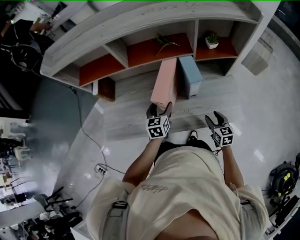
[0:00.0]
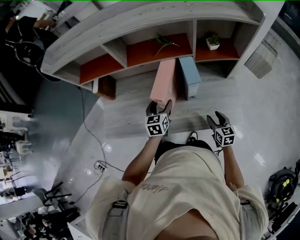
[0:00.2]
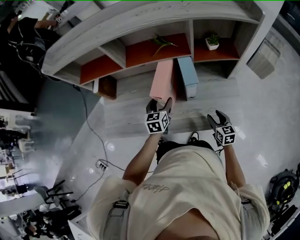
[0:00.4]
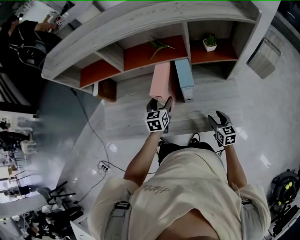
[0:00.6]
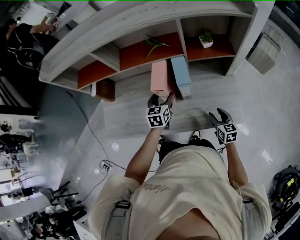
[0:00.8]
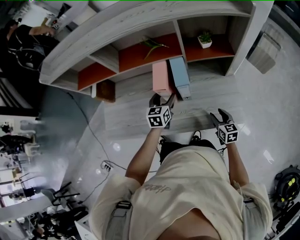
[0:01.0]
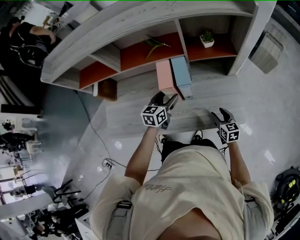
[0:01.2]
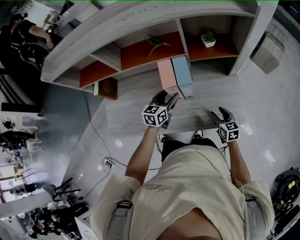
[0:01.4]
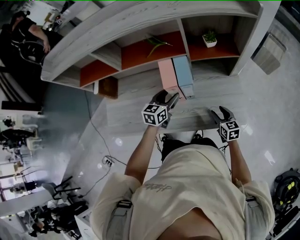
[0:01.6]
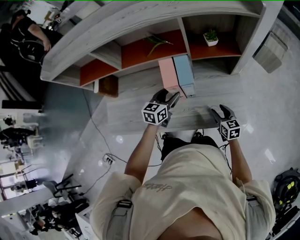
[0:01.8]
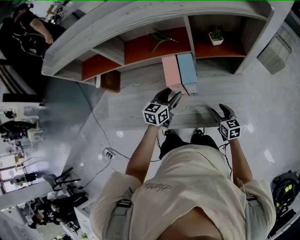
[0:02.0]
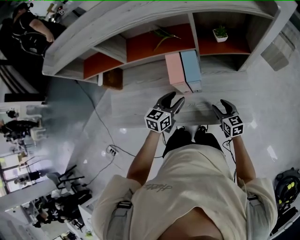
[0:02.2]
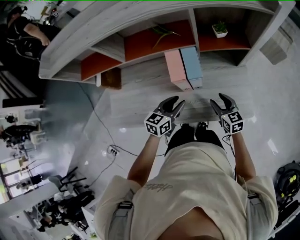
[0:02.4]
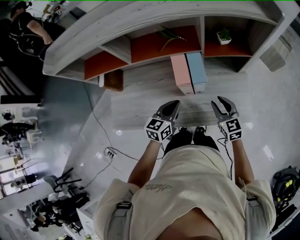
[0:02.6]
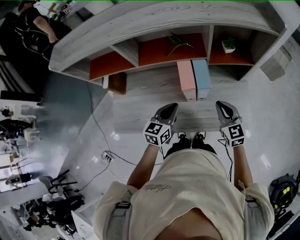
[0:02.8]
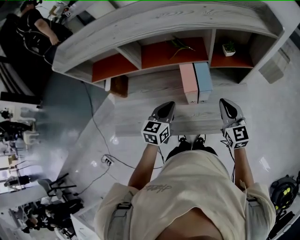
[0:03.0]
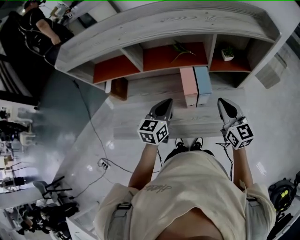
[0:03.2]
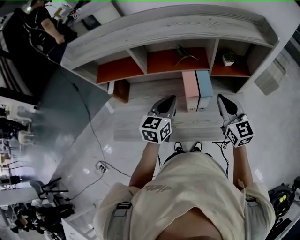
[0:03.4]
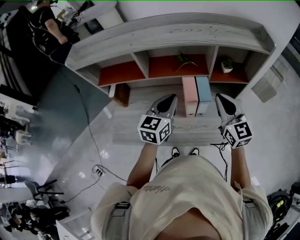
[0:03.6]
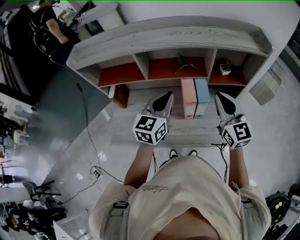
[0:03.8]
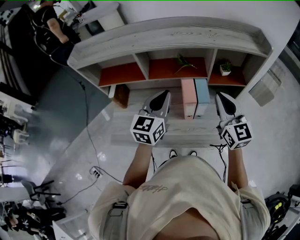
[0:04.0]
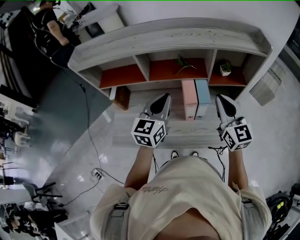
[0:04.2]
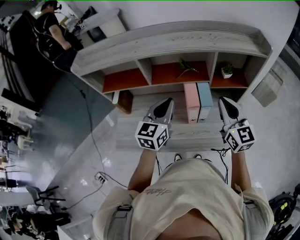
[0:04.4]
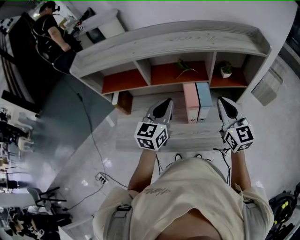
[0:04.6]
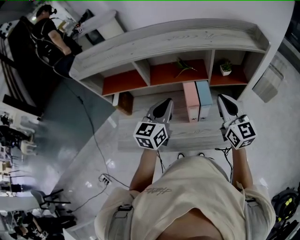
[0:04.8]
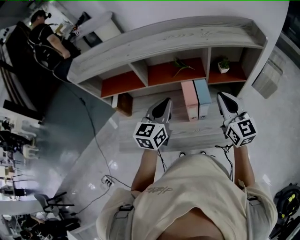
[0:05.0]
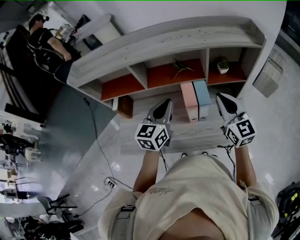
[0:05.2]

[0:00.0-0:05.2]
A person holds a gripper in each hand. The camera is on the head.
0:00.0 to 0:01.8: The left gripper moves to the right, about 10 cm; the right gripper changes place by about 5 cm.
0:01.8 to 0:03.4: The left gripper goes about 15 cm upward, and closes its fingers; the right gripper is displaced upward by about 30 cm, rotates roughly 30 degrees, and closes.
0:03.4 to 0:05.2: Both grippers move upward, approximately 5 cm.

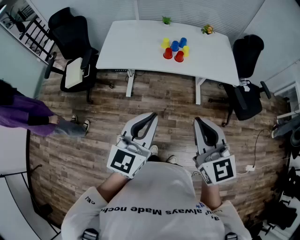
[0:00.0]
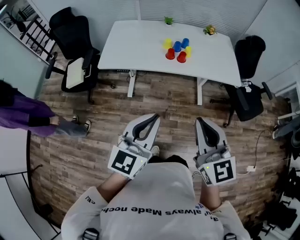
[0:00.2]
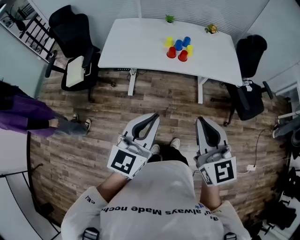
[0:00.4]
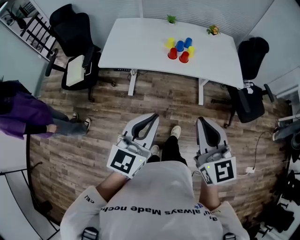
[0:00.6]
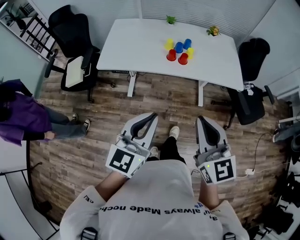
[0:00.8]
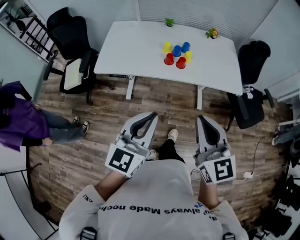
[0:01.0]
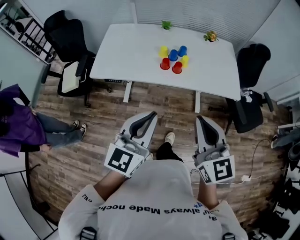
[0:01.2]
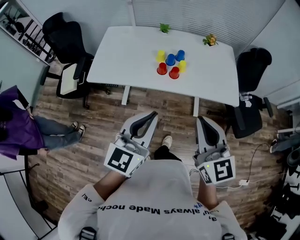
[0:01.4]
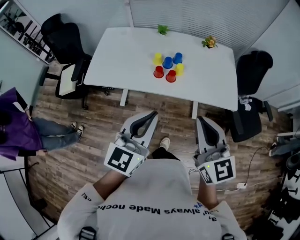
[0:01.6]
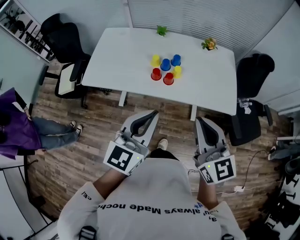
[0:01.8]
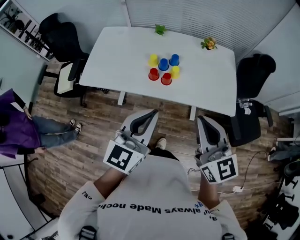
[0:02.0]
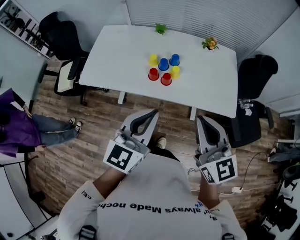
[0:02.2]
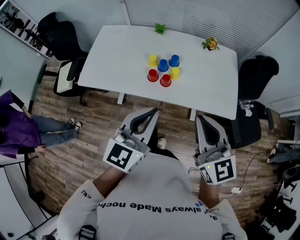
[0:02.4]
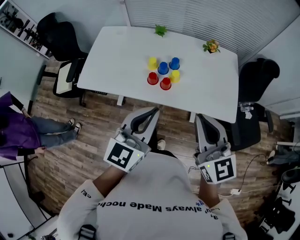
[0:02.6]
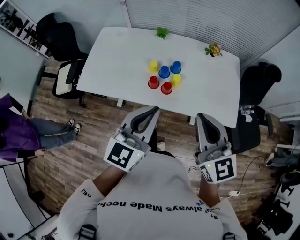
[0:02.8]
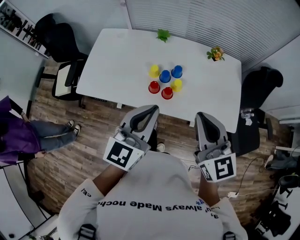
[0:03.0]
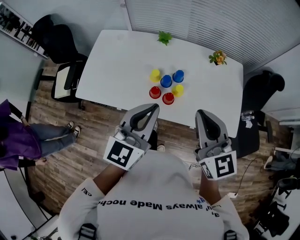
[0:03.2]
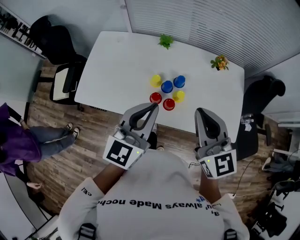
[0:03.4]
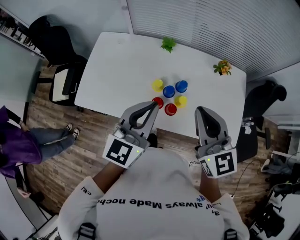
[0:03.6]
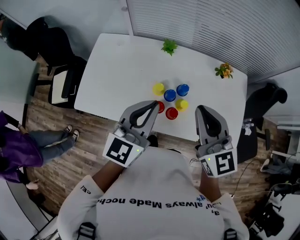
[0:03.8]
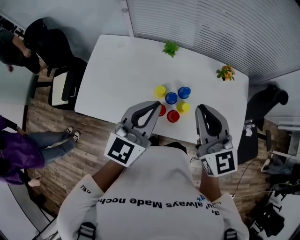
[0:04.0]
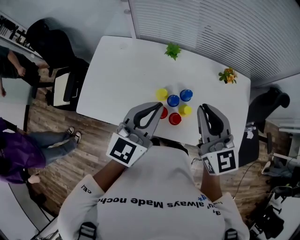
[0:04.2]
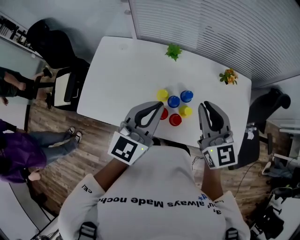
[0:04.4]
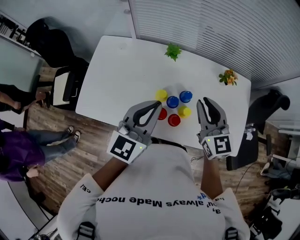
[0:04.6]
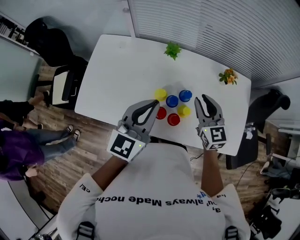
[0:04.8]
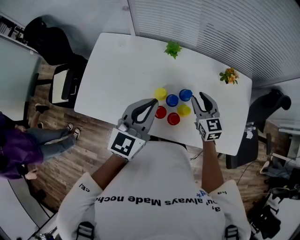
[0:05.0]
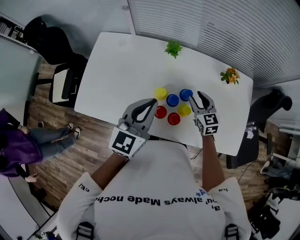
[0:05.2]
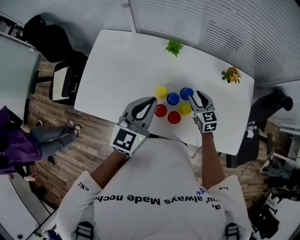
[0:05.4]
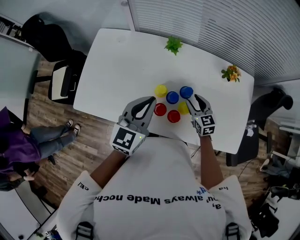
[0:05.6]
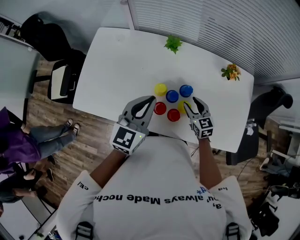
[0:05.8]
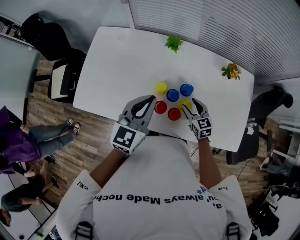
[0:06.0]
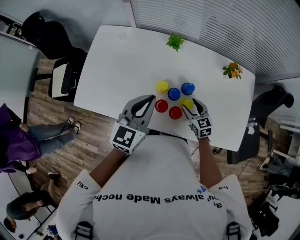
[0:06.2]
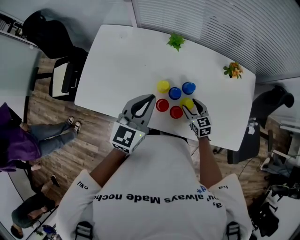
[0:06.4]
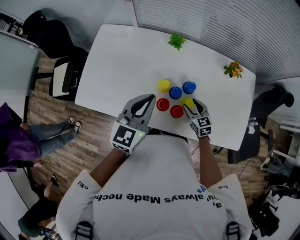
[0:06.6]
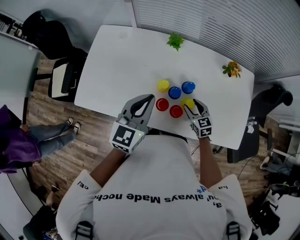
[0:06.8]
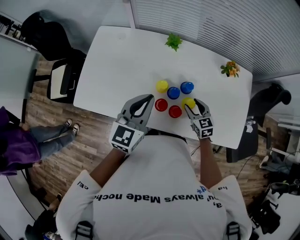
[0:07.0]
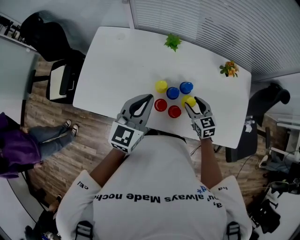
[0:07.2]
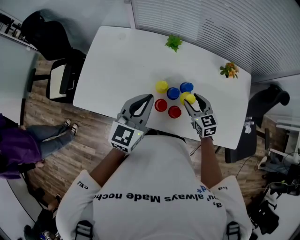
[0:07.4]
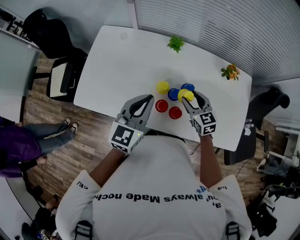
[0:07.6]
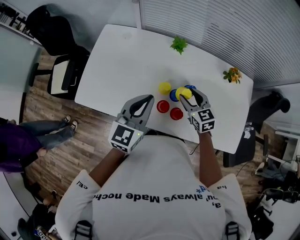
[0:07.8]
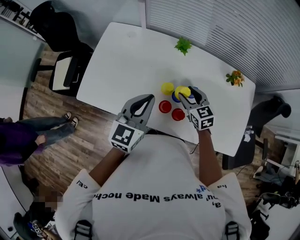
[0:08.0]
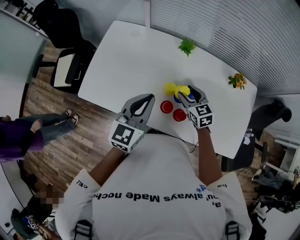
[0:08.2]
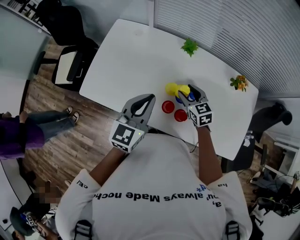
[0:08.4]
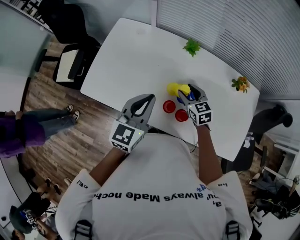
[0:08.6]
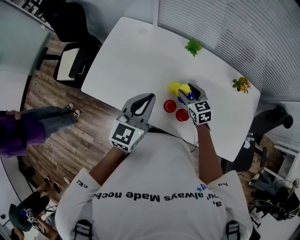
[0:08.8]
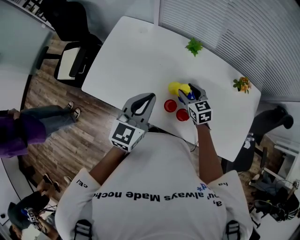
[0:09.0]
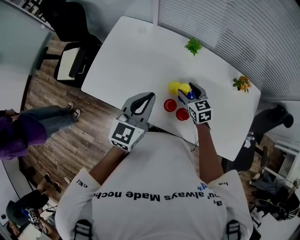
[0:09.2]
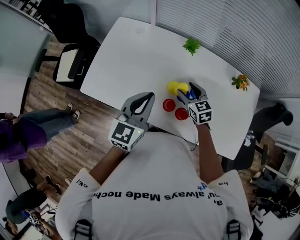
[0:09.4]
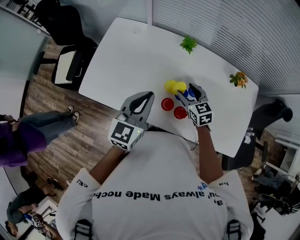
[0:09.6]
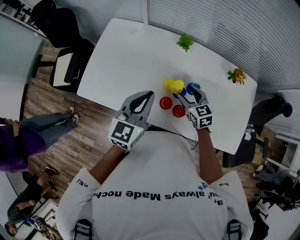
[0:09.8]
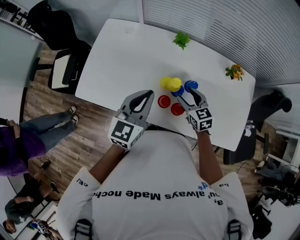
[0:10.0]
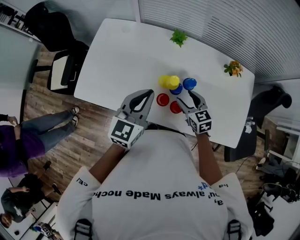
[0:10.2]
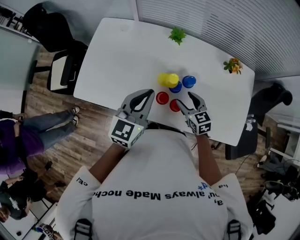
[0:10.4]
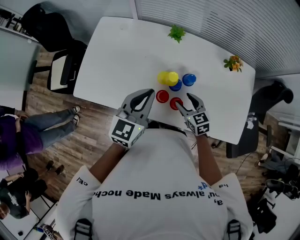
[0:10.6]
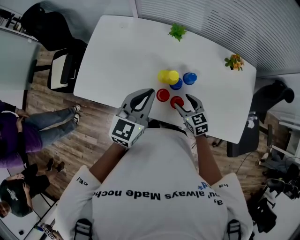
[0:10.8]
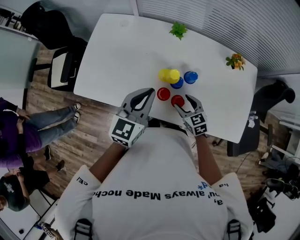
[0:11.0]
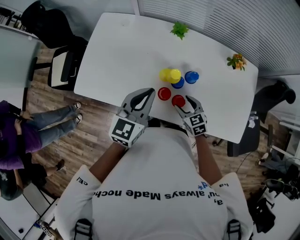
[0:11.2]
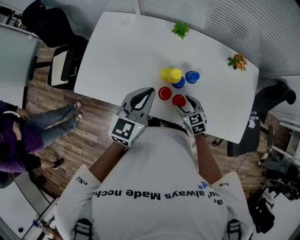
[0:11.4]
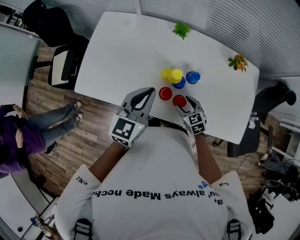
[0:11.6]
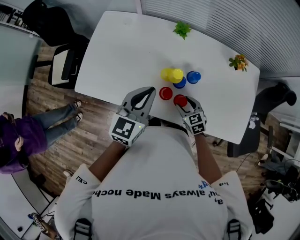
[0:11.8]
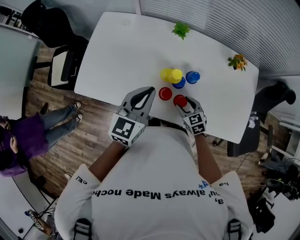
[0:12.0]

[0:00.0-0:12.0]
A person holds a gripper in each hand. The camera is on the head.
0:00.0 to 0:01.6: Both grippers travel together forward and to the right, about 20 cm.
0:01.6 to 0:03.0: Both grippers travel together forward, about 15 cm.
0:03.0 to 0:04.4: Both grippers travel together forward, some 20 cm.
0:04.4 to 0:06.0: The right gripper shifts some 30 cm downward, changes its angle by about 30 degrees, and opens up. Meanwhile the left gripper is displaced downward by about 10 cm.
0:06.0 to 0:07.6: The right gripper travels upward by roughly 10 cm.
0:07.6 to 0:09.0: The right gripper travels to the left by roughly 5 cm.
0:09.0 to 0:10.4: The right gripper travels backward by about 10 cm.
0:10.4 to 0:12.0: The right gripper goes approximately 5 cm downward.

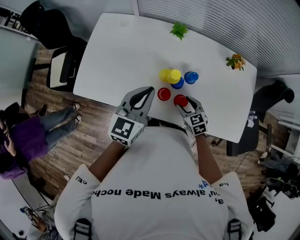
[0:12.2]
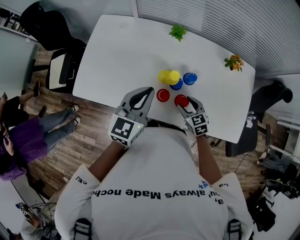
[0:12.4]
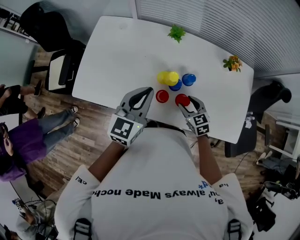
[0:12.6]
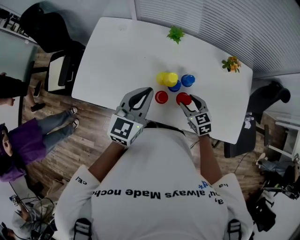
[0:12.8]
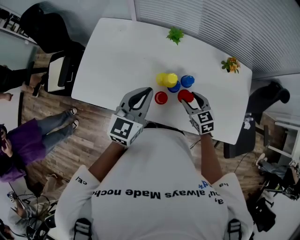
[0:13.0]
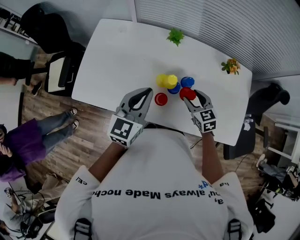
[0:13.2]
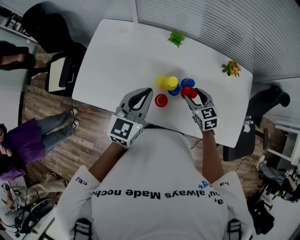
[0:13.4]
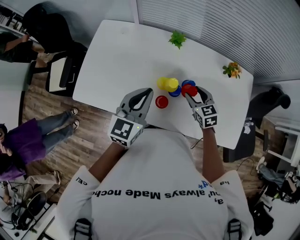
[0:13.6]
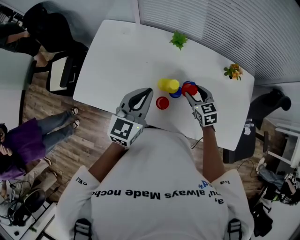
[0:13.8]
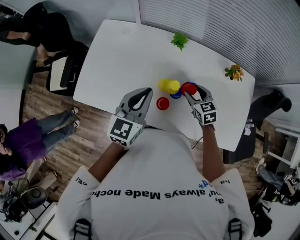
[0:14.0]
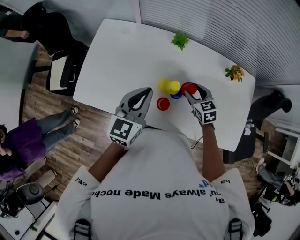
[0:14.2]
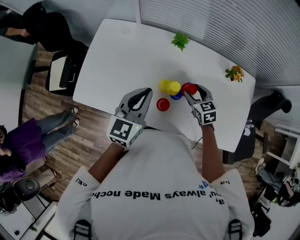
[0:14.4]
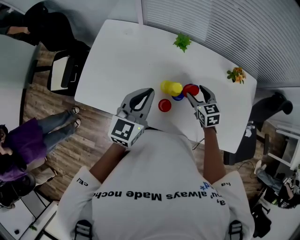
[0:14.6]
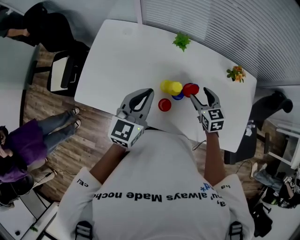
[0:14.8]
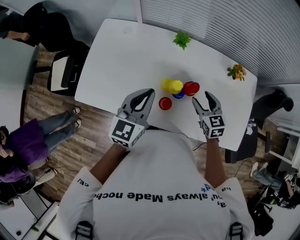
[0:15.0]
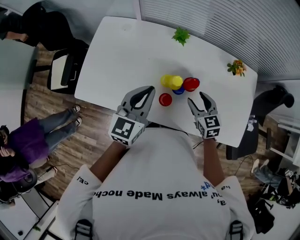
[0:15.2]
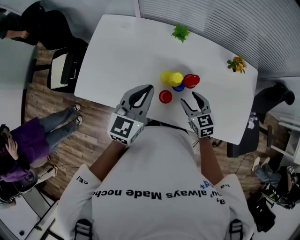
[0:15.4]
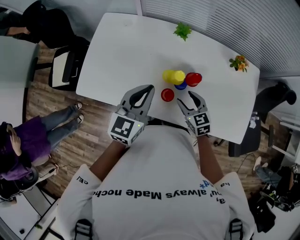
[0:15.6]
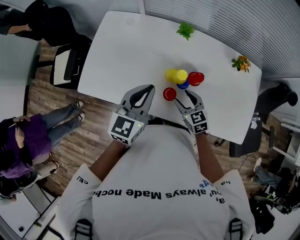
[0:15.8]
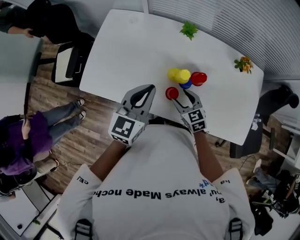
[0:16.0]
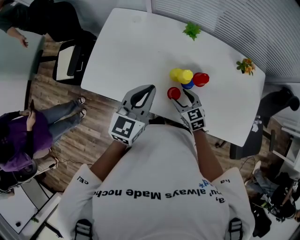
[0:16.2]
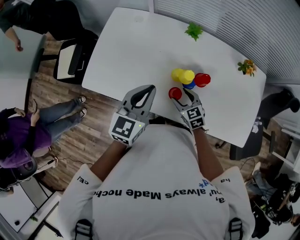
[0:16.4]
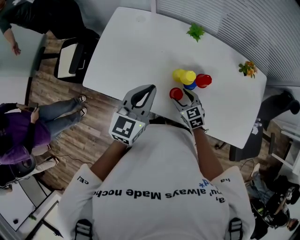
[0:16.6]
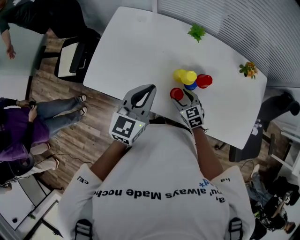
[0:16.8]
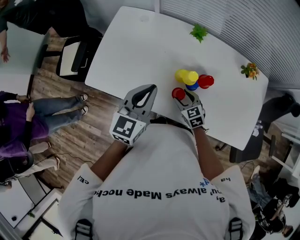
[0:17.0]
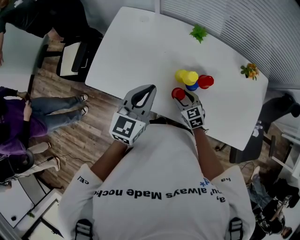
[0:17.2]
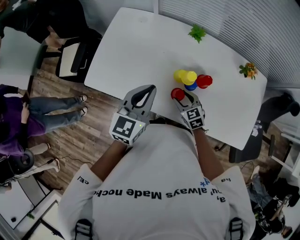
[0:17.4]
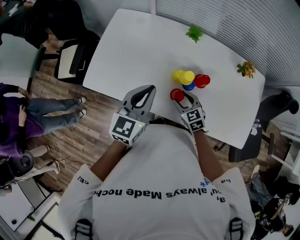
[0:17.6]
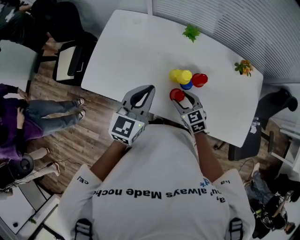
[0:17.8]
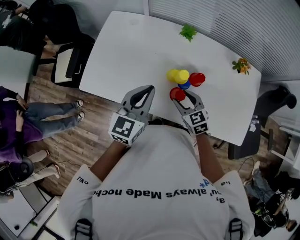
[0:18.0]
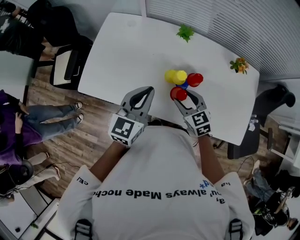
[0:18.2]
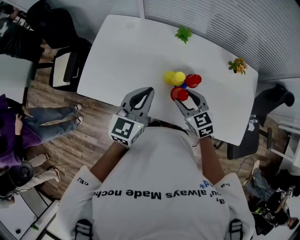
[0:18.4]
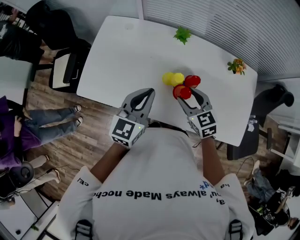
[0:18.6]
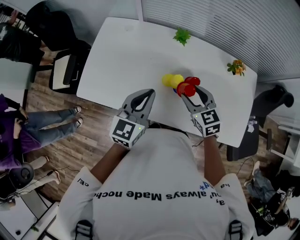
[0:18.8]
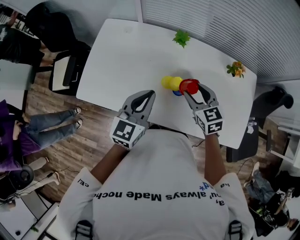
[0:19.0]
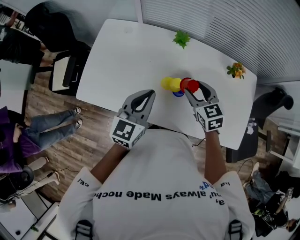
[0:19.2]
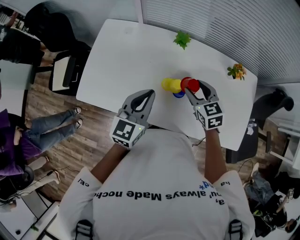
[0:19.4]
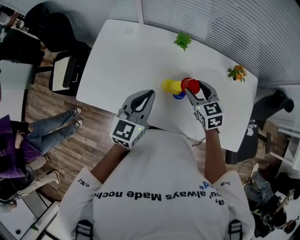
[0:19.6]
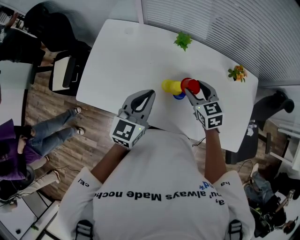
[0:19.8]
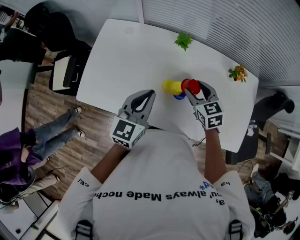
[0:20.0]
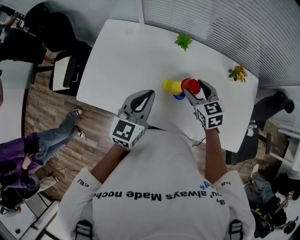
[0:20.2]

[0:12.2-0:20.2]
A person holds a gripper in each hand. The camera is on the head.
0:12.2 to 0:13.8: The right gripper goes roughly 10 cm forward and upward.
0:13.8 to 0:15.4: The right gripper goes about 5 cm backward.
0:15.4 to 0:17.0: The right gripper moves downward and to the left, some 10 cm.
0:17.0 to 0:18.6: The right gripper is displaced upward by approximately 15 cm.
0:18.6 to 0:20.2: The right gripper heads forward, covering approximately 10 cm.
